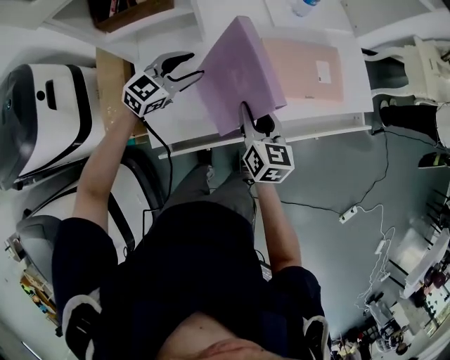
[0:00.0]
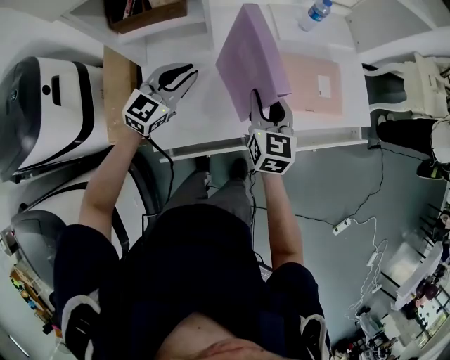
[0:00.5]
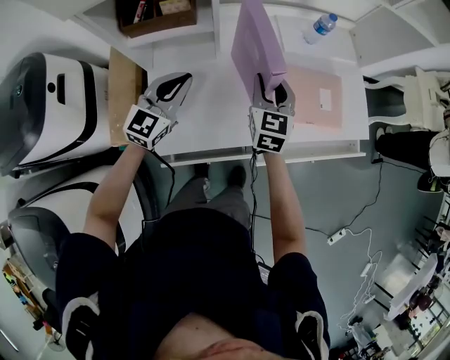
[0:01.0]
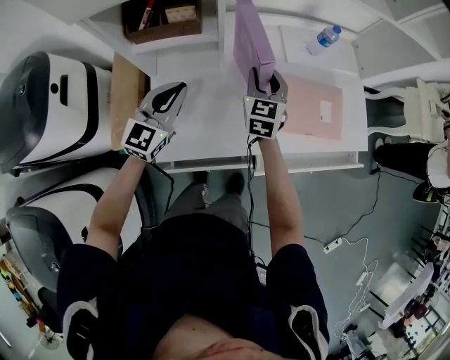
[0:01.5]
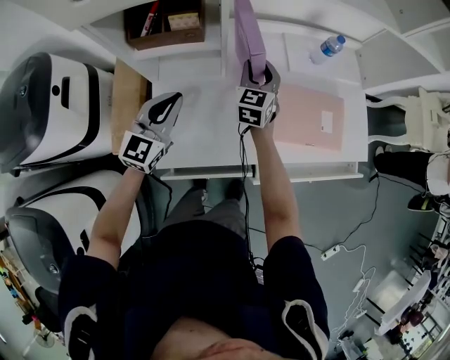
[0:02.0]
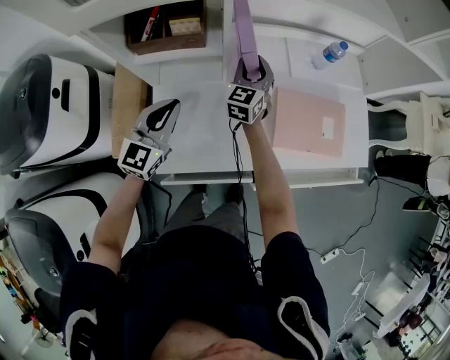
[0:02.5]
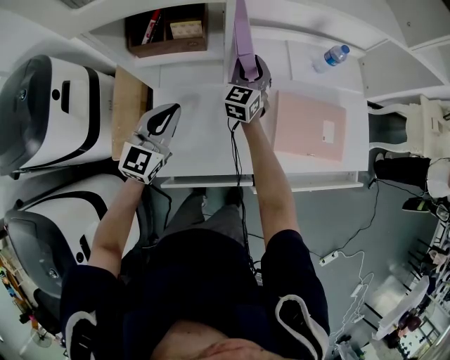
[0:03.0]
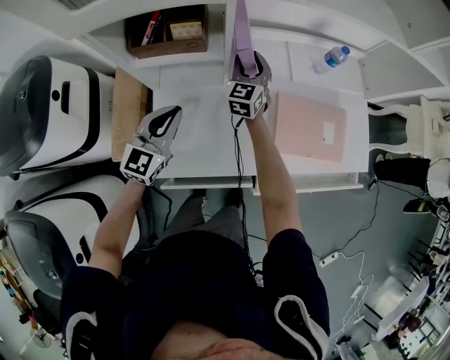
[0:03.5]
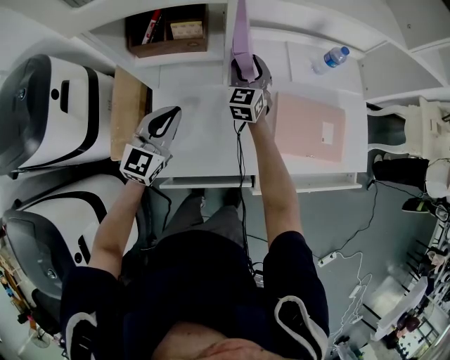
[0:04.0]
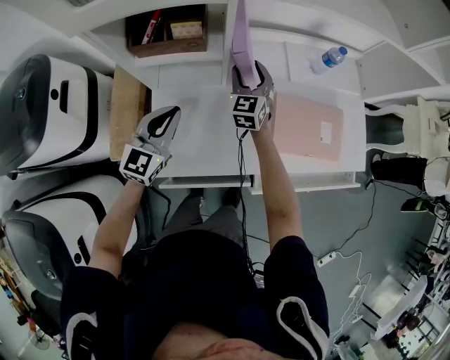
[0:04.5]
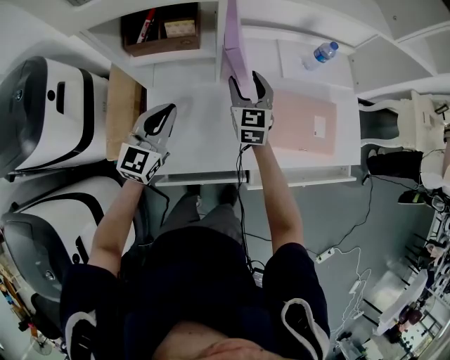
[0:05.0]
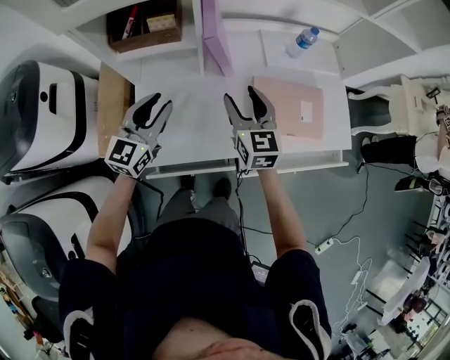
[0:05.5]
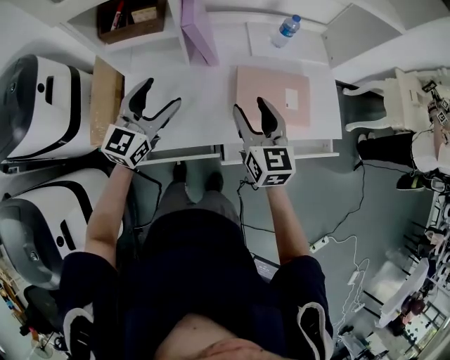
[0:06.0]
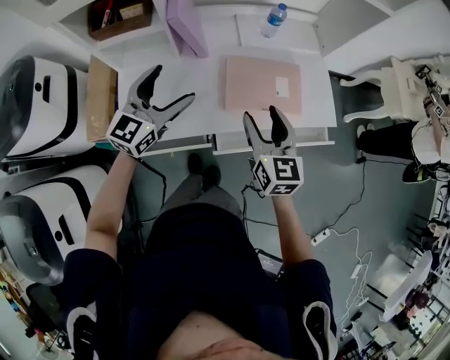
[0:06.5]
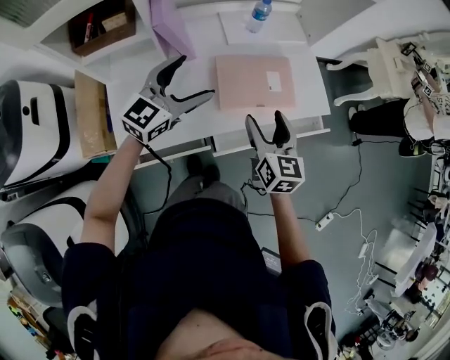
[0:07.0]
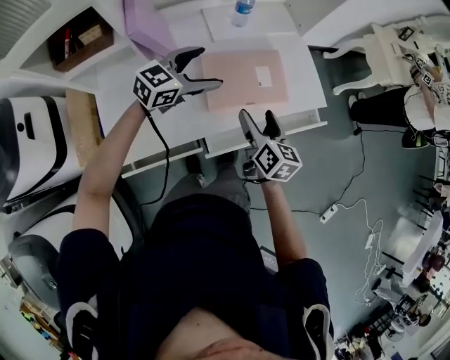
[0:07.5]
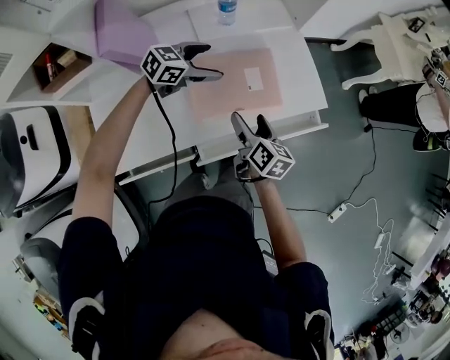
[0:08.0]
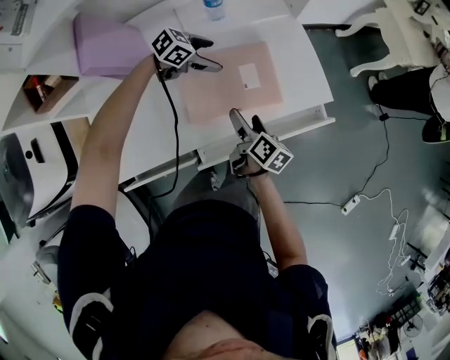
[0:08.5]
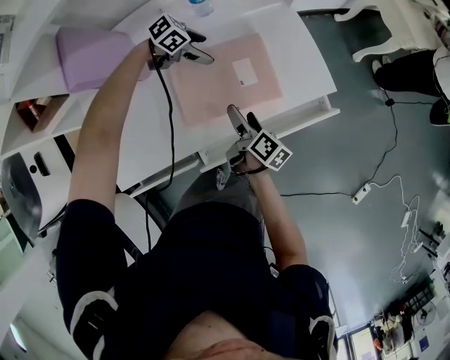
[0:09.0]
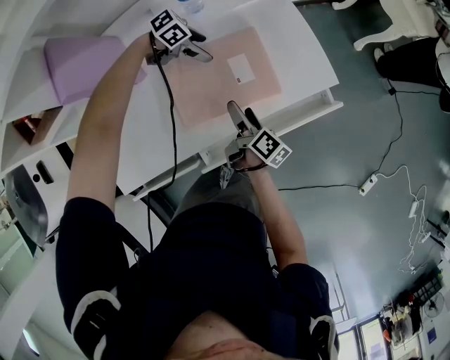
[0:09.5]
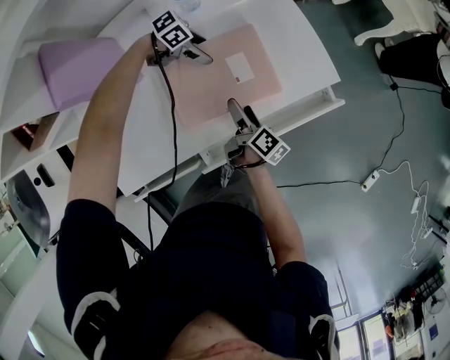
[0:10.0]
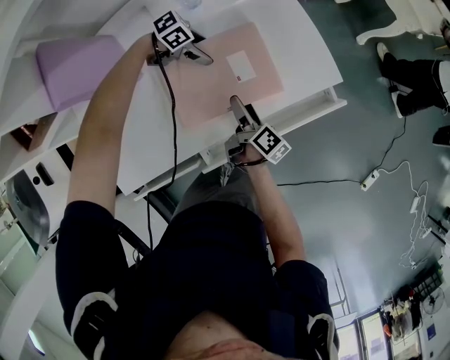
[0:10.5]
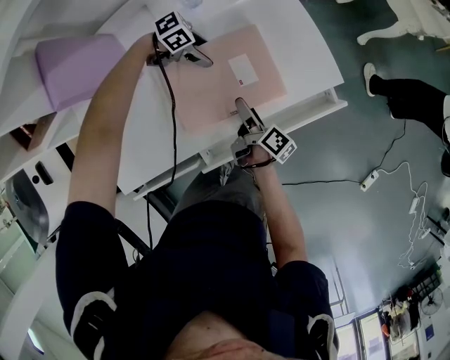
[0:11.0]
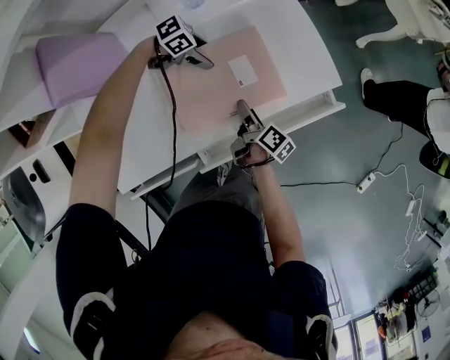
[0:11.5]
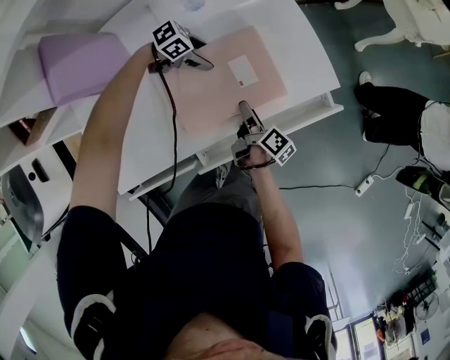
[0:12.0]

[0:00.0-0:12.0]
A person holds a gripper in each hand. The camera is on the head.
0:00.0 to 0:02.0: The right gripper goes approximately 25 cm forward and to the left, and changes its angle by approximately 30 degrees; the left gripper is displaced upward and to the left by approximately 10 cm, changes its angle by approximately 30 degrees, and closes.
0:02.0 to 0:04.0: The right gripper moves to the left, roughly 5 cm.
0:04.0 to 0:06.0: The right gripper travels backward, to the right and upward by some 35 cm, and swivels about 30 degrees. Meanwhile the left gripper is displaced to the right and upward by some 15 cm, and opens.
0:06.0 to 0:08.0: The left gripper shifts by some 35 cm, and rotates roughly 60 degrees. The right gripper ends up about 25 cm from where it was, rolls clockwise, seen from behind, by some 40 degrees, and opens up.
0:08.0 to 0:10.0: The grippers both shift downward by some 15 cm. The left gripper changes its angle by some 40 degrees. The right gripper changes its angle by about 40 degrees.
0:10.0 to 0:12.0: The right gripper closes its fingers.

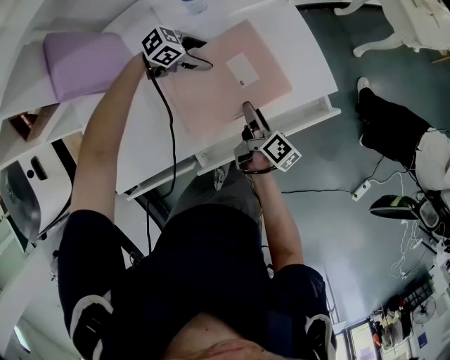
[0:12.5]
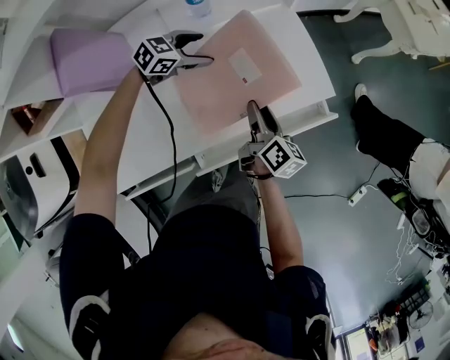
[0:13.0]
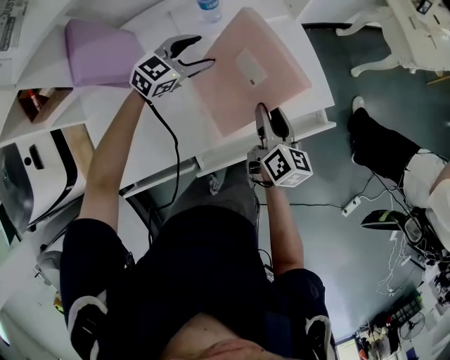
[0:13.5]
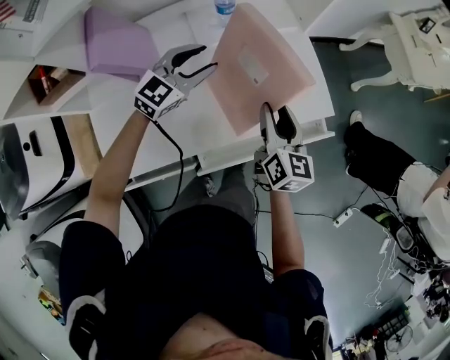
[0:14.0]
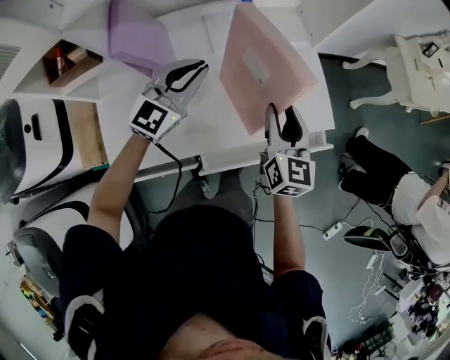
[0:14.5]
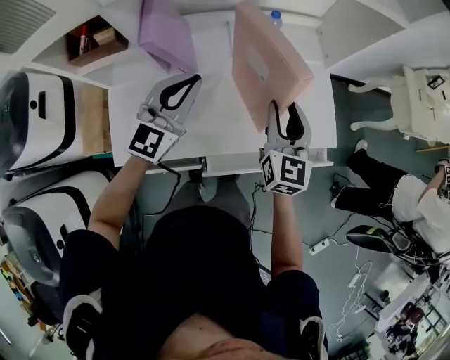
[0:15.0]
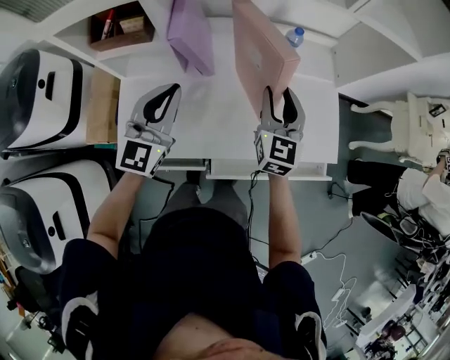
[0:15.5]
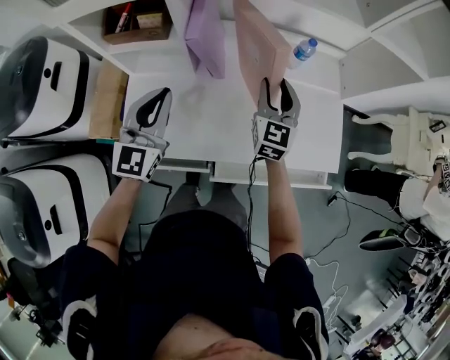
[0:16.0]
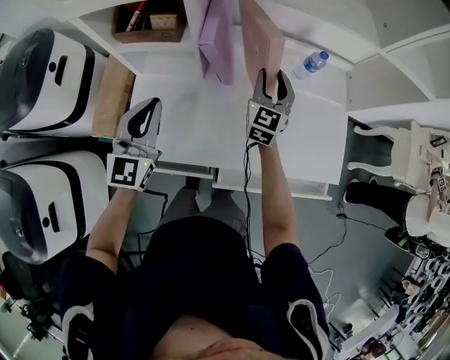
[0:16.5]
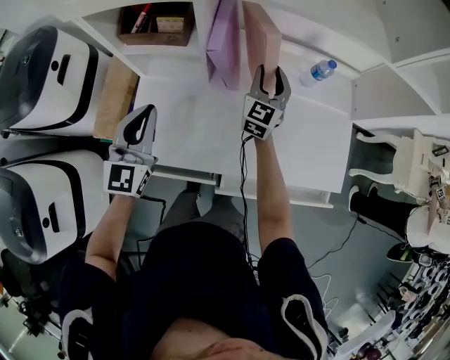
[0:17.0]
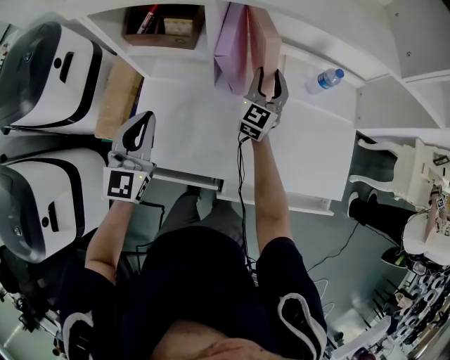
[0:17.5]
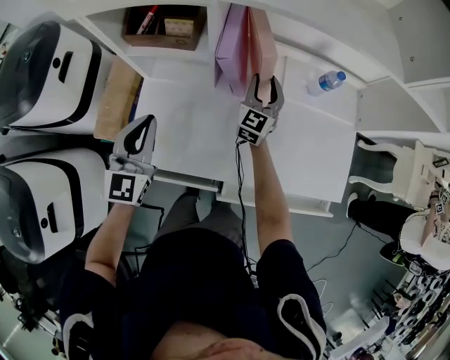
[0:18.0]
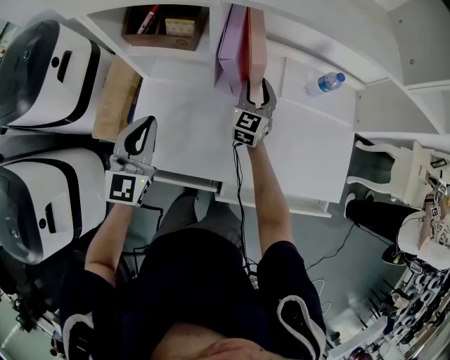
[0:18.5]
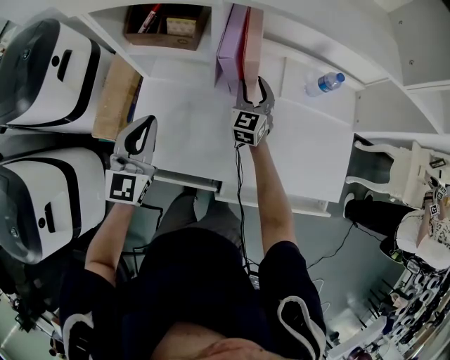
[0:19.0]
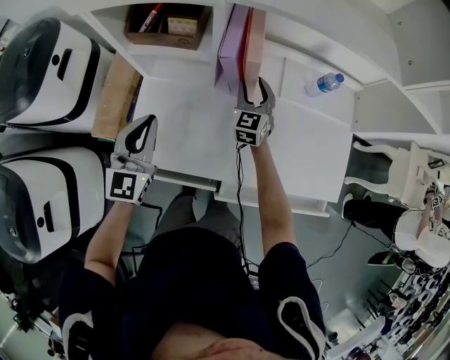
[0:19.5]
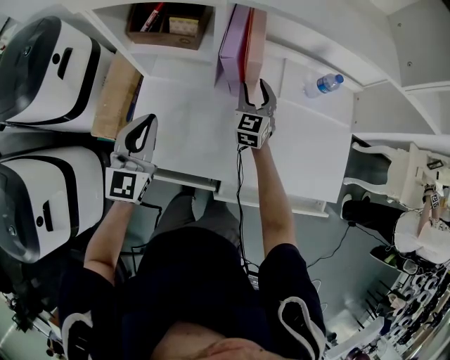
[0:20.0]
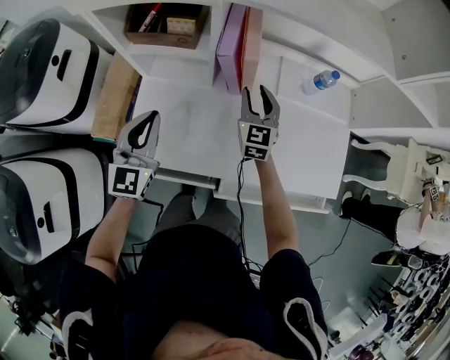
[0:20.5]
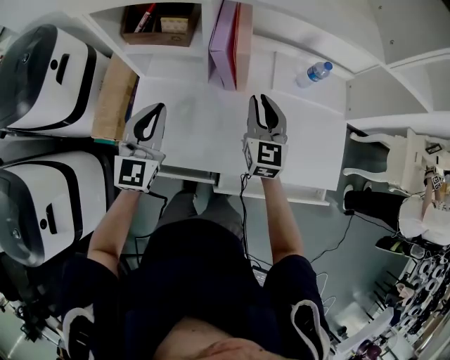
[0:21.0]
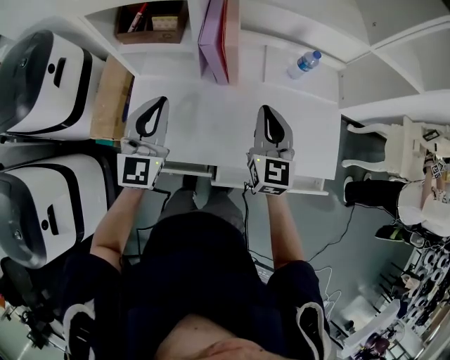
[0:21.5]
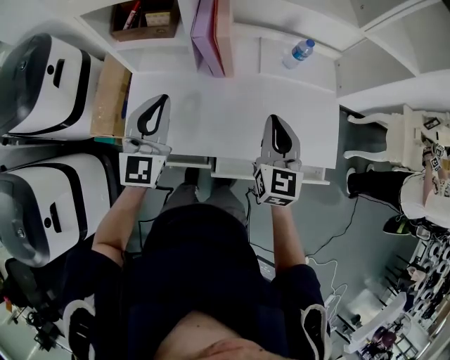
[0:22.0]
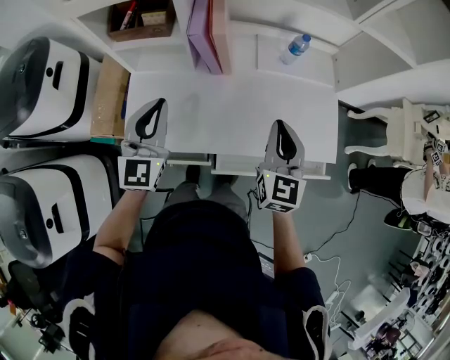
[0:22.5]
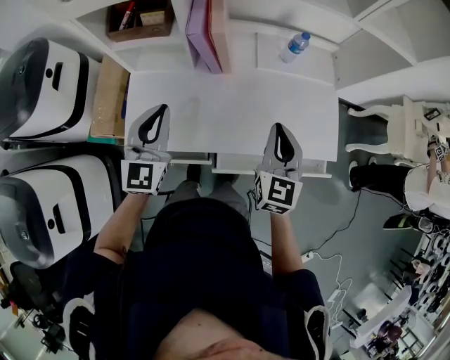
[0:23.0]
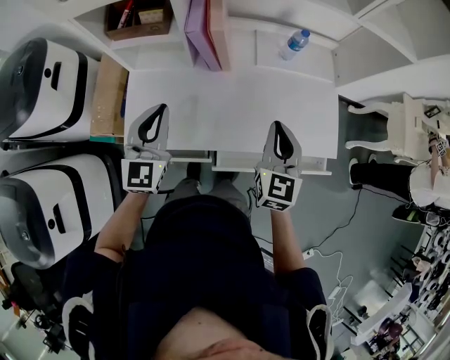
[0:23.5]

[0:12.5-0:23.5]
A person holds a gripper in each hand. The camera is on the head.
0:12.5 to 0:14.5: The two grippers go about 25 cm upward. The right gripper twists approximately 60 degrees counterclockwise, seen from behind. The left gripper angles its fingers upward, by some 30 degrees, and closes.
0:14.5 to 0:16.0: The right gripper travels to the left and forward by roughly 20 cm, and rotates some 20 degrees; the left gripper shifts about 25 cm to the left and backward, and swivels roughly 40 degrees.
0:16.0 to 0:18.0: The left gripper is displaced to the left by roughly 10 cm. The right gripper shifts some 15 cm to the left, forward and downward.
0:18.0 to 0:20.0: The grippers stay close to where they were, moving slightly.
0:20.0 to 0:21.5: The left gripper heads to the right and upward, covering roughly 10 cm; the right gripper moves backward, upward and to the right, roughly 25 cm, and closes its fingers.
0:21.5 to 0:23.5: The left gripper ends up approximately 5 cm from where it was; the right gripper moves backward and to the right, some 10 cm.

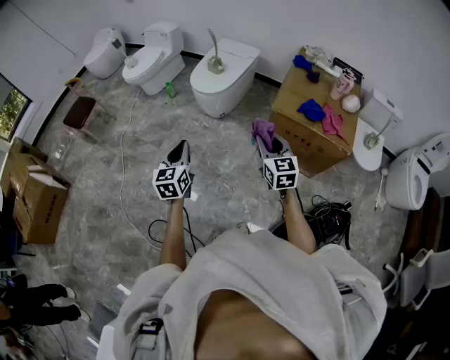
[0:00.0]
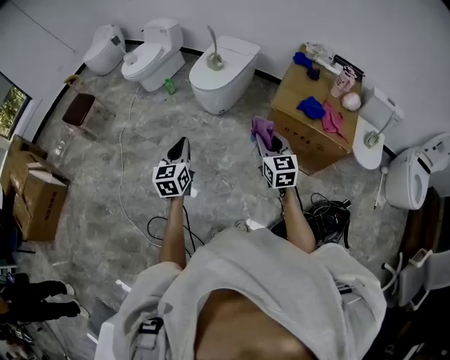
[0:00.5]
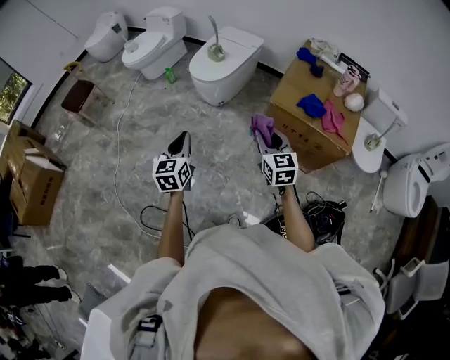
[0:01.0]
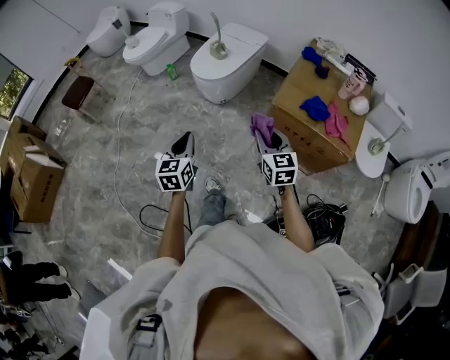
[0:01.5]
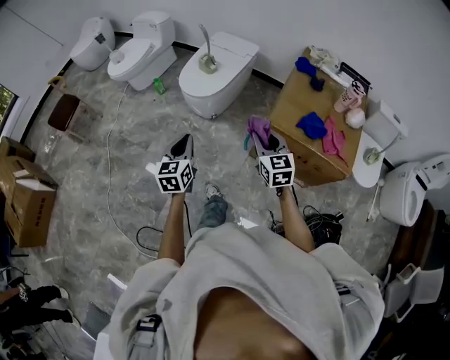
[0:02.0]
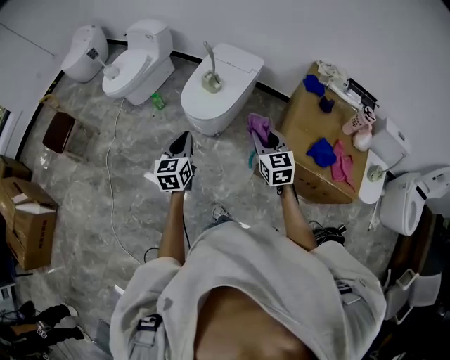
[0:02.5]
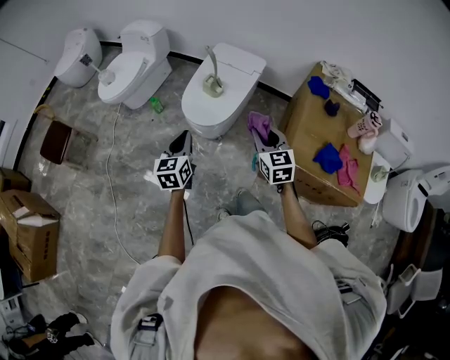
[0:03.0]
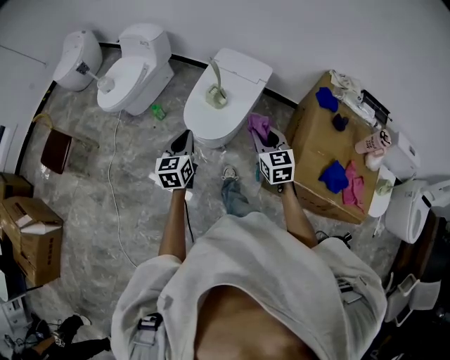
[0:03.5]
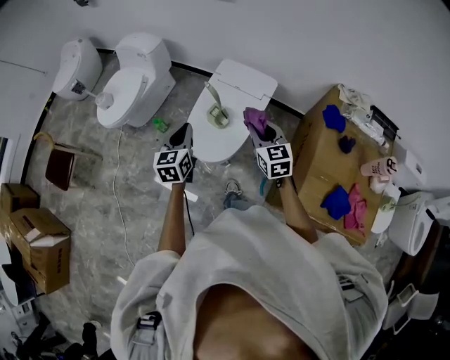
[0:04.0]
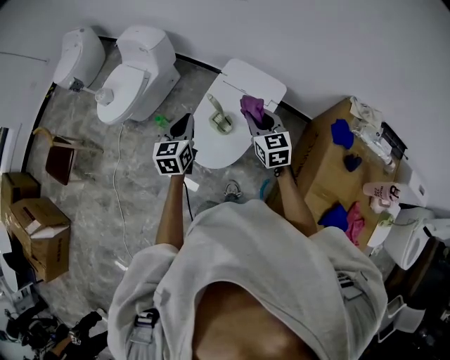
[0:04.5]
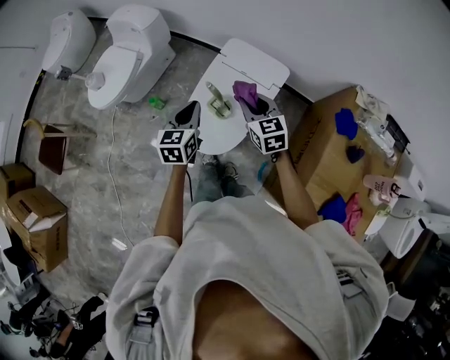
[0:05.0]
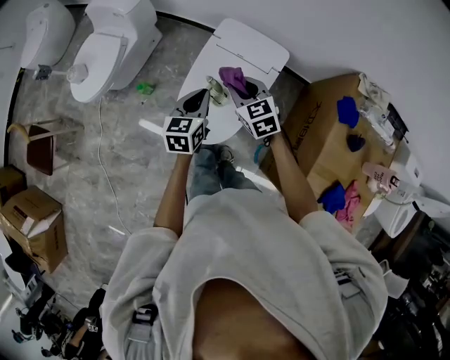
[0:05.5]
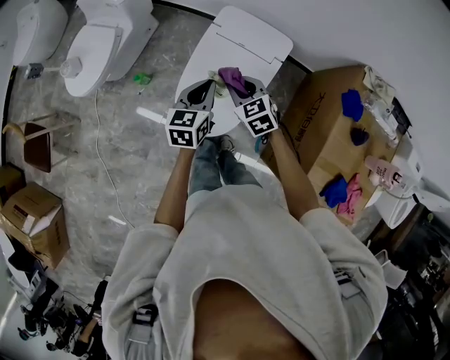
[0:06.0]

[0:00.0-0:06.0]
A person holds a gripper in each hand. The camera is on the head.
0:00.0 to 0:02.0: The left gripper travels forward and to the right by some 15 cm. The right gripper moves forward, about 15 cm.
0:02.0 to 0:04.0: The pair of grippers is taken forward, roughly 50 cm.
0:04.0 to 0:06.0: The left gripper is displaced forward, downward and to the right by some 20 cm, while the right gripper moves forward, downward and to the left, approximately 20 cm, and rotates some 30 degrees.
